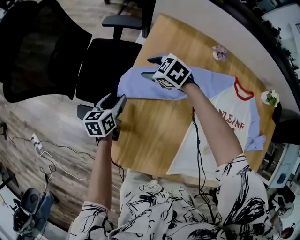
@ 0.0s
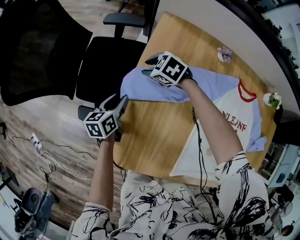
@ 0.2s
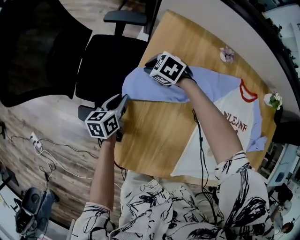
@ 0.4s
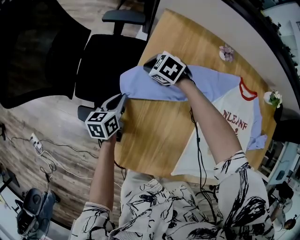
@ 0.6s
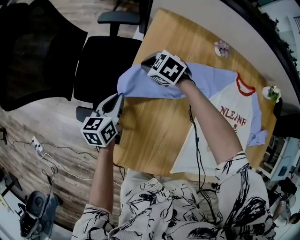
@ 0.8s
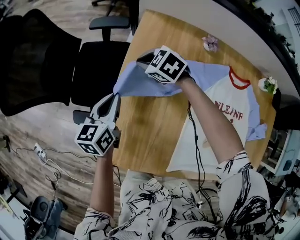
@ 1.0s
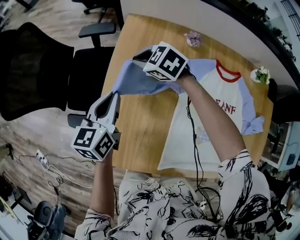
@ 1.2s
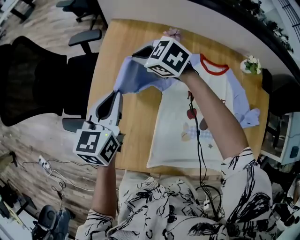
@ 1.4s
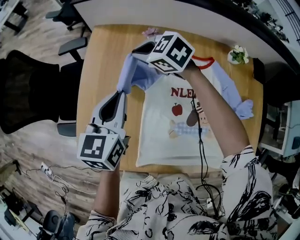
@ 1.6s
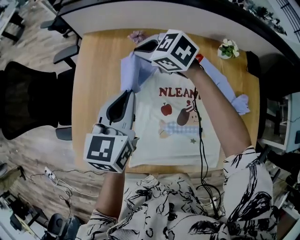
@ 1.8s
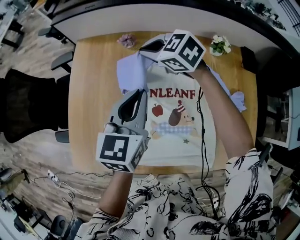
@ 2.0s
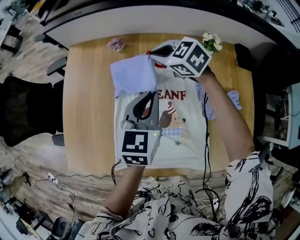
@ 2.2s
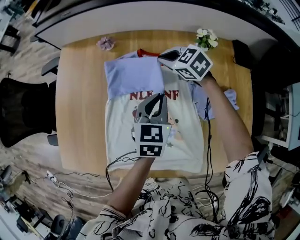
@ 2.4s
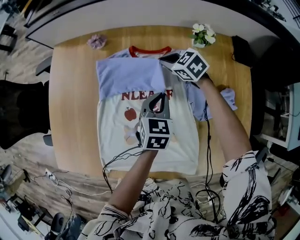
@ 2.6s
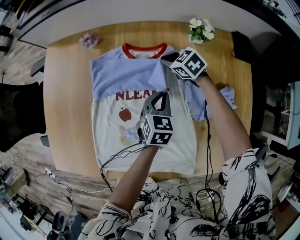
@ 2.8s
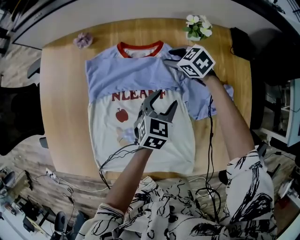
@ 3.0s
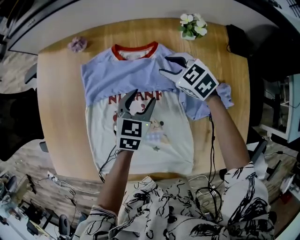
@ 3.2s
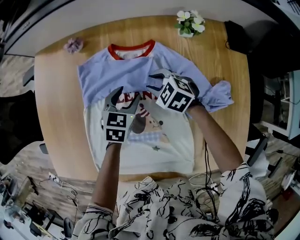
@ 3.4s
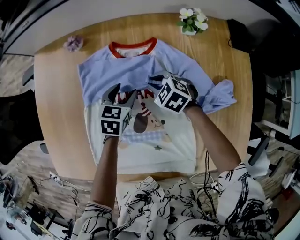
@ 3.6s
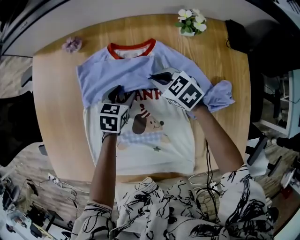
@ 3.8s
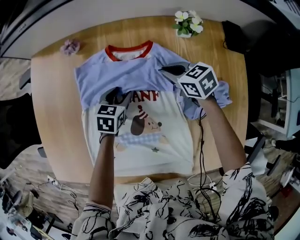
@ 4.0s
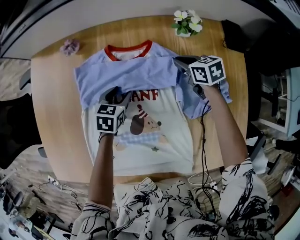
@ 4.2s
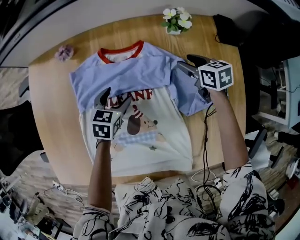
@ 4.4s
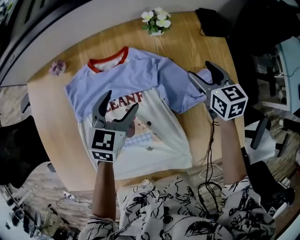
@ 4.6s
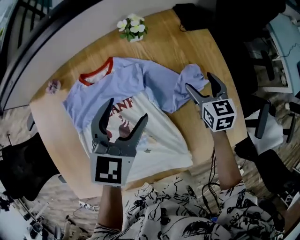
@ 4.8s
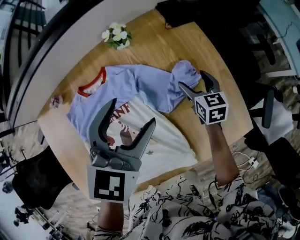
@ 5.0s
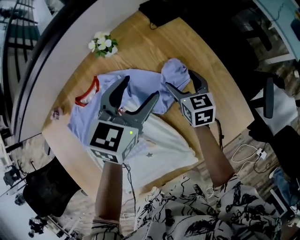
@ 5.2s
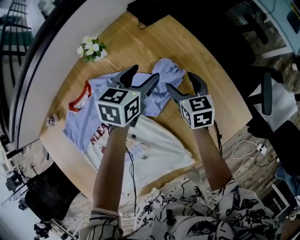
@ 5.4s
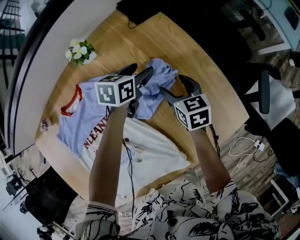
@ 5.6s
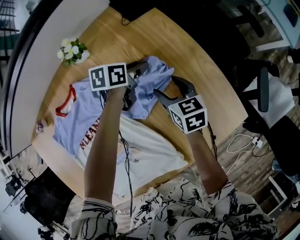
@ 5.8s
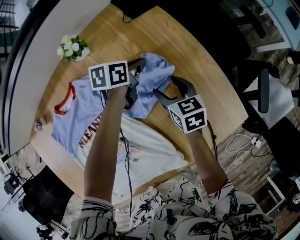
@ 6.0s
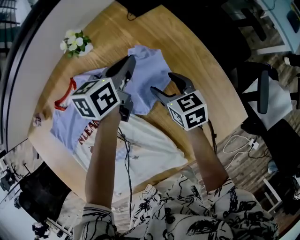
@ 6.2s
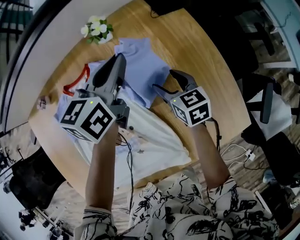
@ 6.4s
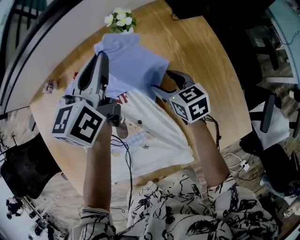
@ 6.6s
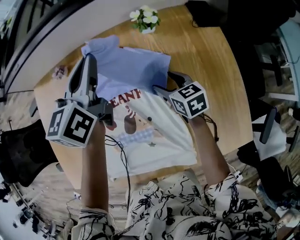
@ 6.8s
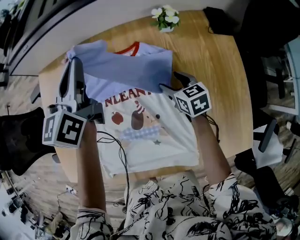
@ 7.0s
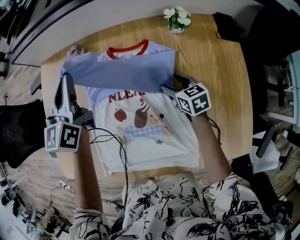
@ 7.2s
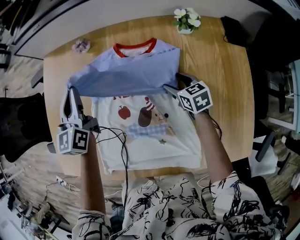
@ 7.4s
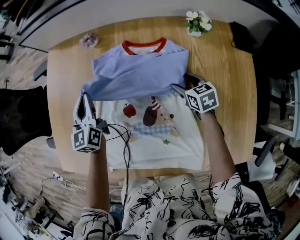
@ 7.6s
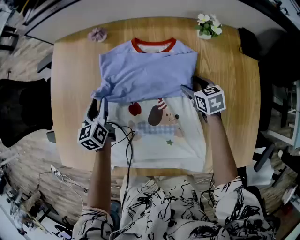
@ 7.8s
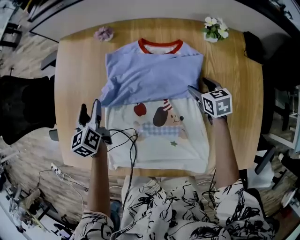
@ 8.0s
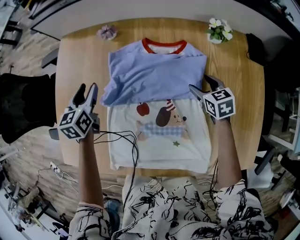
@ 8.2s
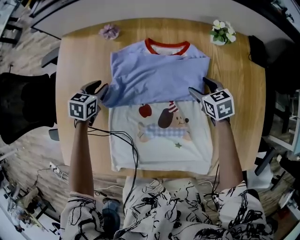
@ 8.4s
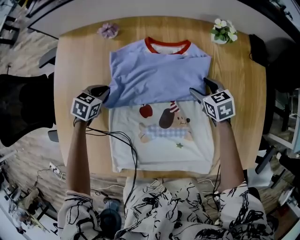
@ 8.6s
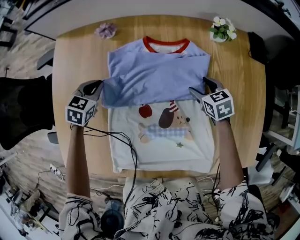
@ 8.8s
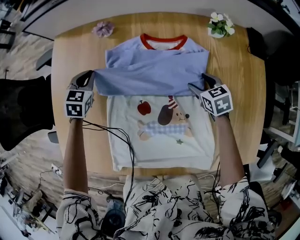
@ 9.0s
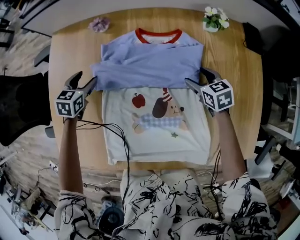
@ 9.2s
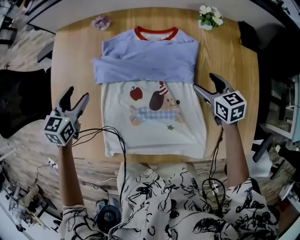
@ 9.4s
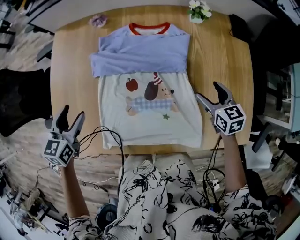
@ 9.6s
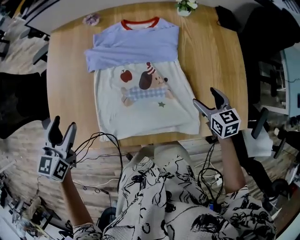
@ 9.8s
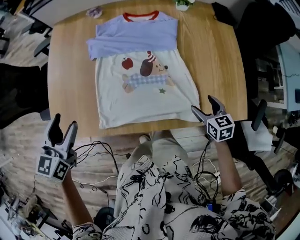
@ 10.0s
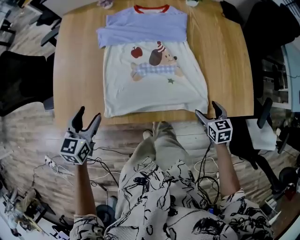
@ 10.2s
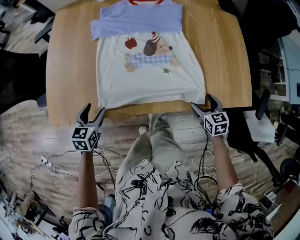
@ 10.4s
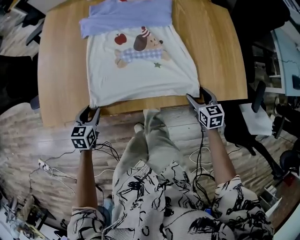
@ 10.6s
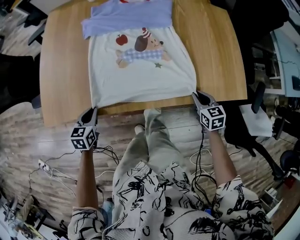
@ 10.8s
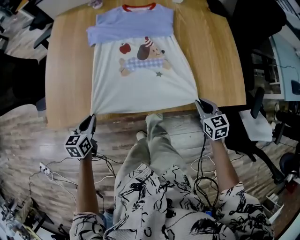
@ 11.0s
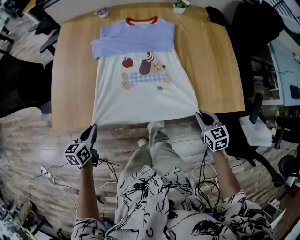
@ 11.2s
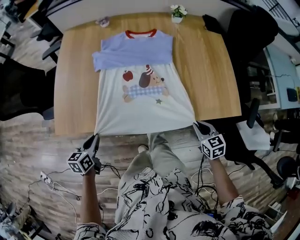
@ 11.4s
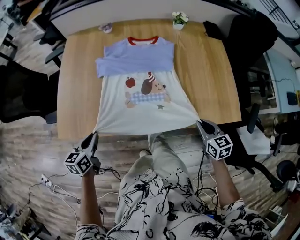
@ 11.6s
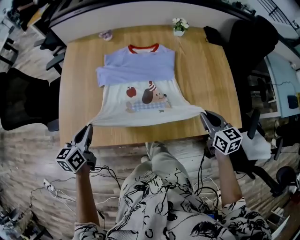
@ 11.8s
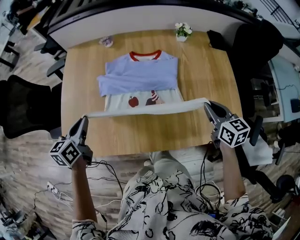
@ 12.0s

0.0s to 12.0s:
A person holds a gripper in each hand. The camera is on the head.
0.0s to 1.6s: The two grippers go about 35 cm to the right, upward and backward. The left gripper turns by approximately 30 degrees, and closes its fingers. Meanwhile the right gripper closes.
1.6s to 3.0s: The pair of grippers is taken to the right, some 40 cm. The two grippers go approximately 20 cm downward. The left gripper turns by about 30 degrees, and opens its fingers. The right gripper rotates roughly 20 degrees, and opens its fingers.
3.0s to 4.4s: The left gripper shifts approximately 15 cm to the left and forward, while the right gripper shifts about 15 cm to the right and backward, turns by some 40 degrees, and closes and opens again.
4.4s to 6.0s: The left gripper reaches approximately 25 cm upward, then returns, rotates some 40 degrees, and closes up. Meanwhile the right gripper travels upward and back again, about 10 cm each way, and changes its angle by roughly 30 degrees.
6.0s to 7.6s: The left gripper ends up some 60 cm from where it was, and rotates approximately 90 degrees. The right gripper moves some 25 cm, and swivels roughly 40 degrees.
7.6s to 9.0s: The left gripper swings up and down, roughly 15 cm each way, with 3 reversals, points its fingers roughly 30 degrees further downward, and opens, then closes once more.
9.0s to 10.4s: The two grippers travel together, backward, approximately 40 cm. The left gripper opens its fingers.
10.4s to 12.0s: Both grippers move upward and forward, approximately 25 cm. The right gripper closes its fingers. The left gripper swivels some 20 degrees, and closes.

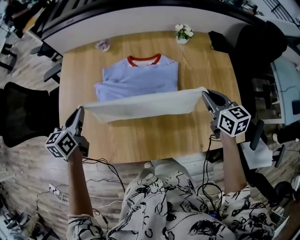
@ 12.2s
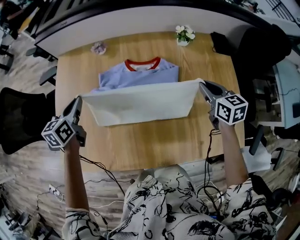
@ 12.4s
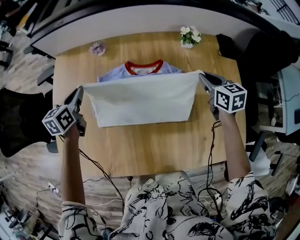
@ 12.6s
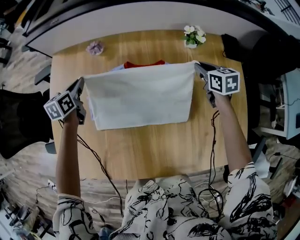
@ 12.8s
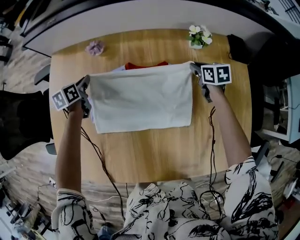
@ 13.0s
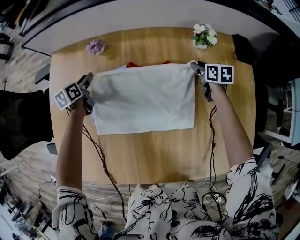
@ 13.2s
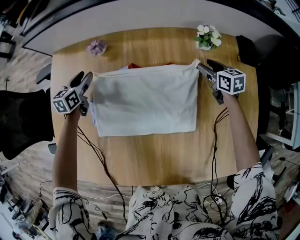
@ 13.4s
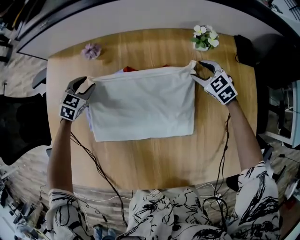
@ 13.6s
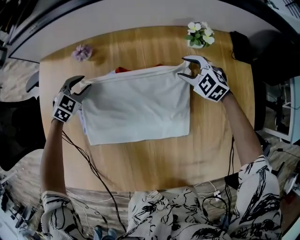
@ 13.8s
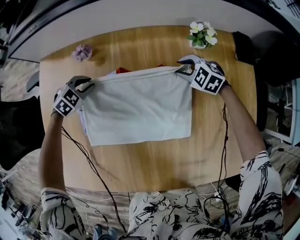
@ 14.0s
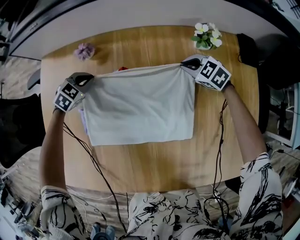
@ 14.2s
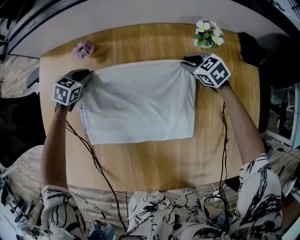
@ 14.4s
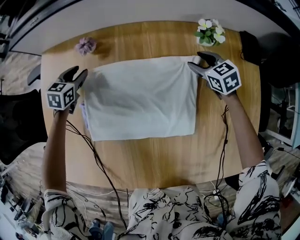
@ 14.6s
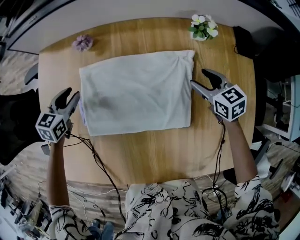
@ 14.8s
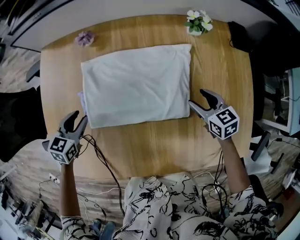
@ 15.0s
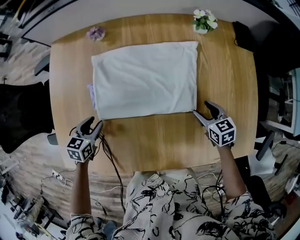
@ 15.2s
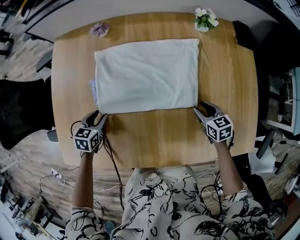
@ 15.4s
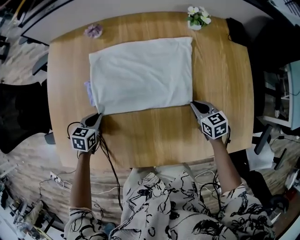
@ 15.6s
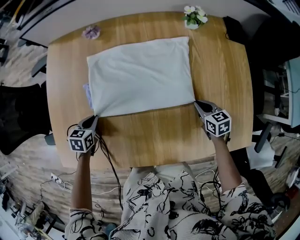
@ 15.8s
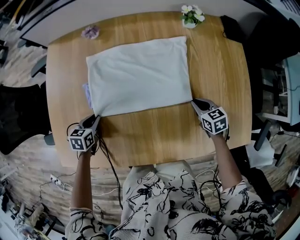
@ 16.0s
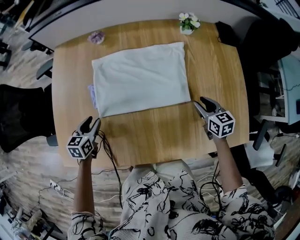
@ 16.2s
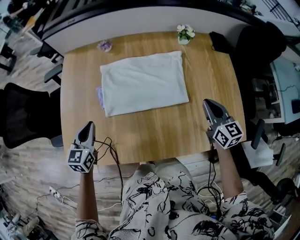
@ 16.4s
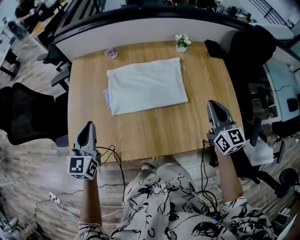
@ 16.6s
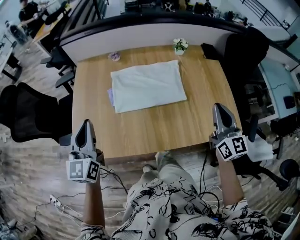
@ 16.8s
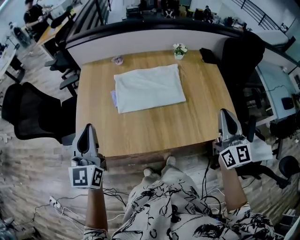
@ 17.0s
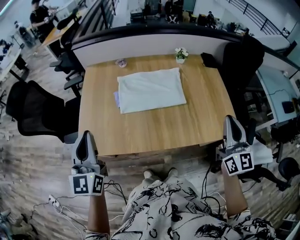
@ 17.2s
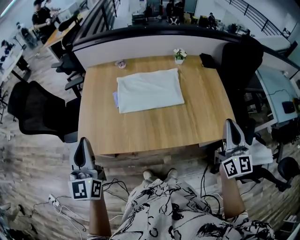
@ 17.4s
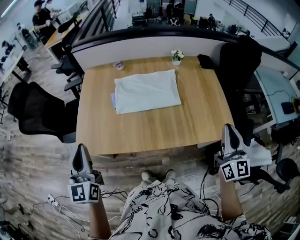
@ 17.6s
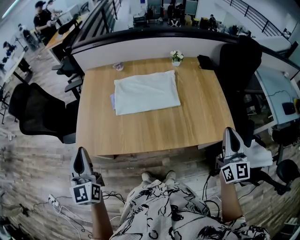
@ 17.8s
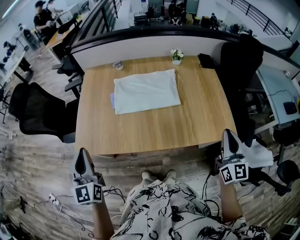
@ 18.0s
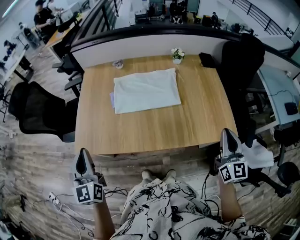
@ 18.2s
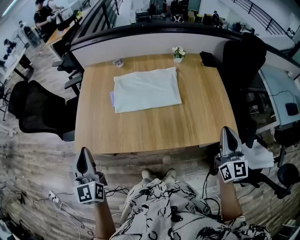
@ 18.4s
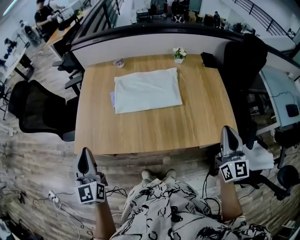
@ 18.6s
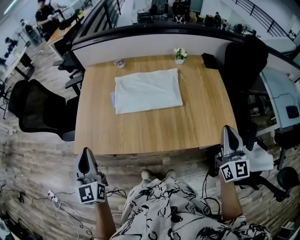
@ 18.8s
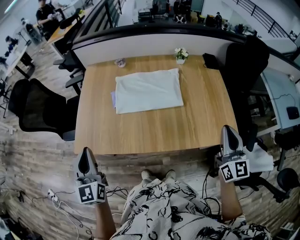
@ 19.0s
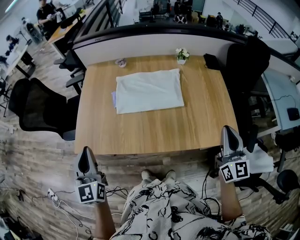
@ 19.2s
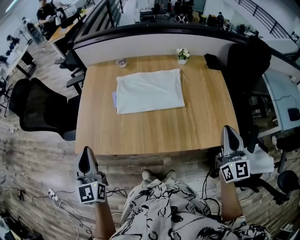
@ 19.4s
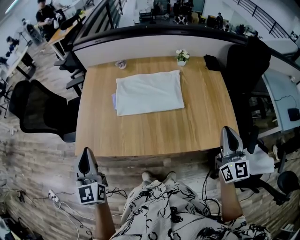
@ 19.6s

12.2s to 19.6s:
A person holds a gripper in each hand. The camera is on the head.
12.2s to 13.6s: The grippers both shift forward and downward by about 35 cm. The right gripper rotates approximately 40 degrees, and opens. The left gripper twists about 50 degrees clockwise, seen from behind.
13.6s to 15.2s: The two grippers go about 25 cm backward. The right gripper swivels some 30 degrees, and closes, then reopens. Meanwhile the left gripper changes its angle by about 30 degrees.
15.2s to 16.6s: Both grippers move upward and backward, some 30 cm. The left gripper points its fingers about 40 degrees further upward; the right gripper points its fingers some 40 degrees further upward, and closes up.
16.6s to 18.2s: The left gripper is displaced backward and upward by about 20 cm, and changes its angle by about 20 degrees. The right gripper shifts about 20 cm backward.
18.2s to 19.6s: The right gripper shifts by roughly 5 cm.

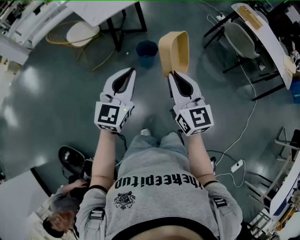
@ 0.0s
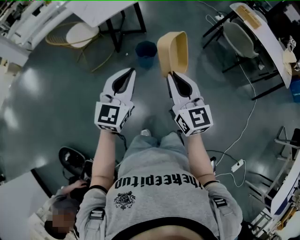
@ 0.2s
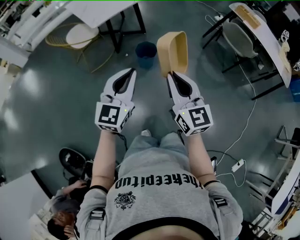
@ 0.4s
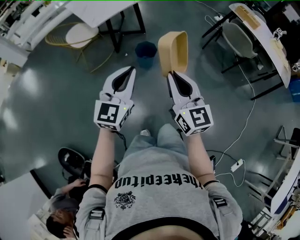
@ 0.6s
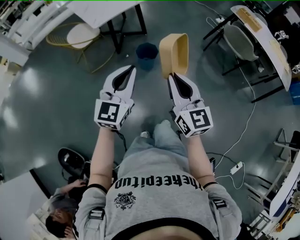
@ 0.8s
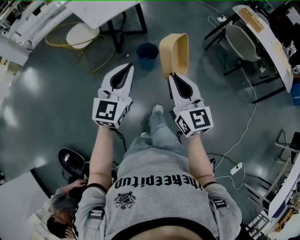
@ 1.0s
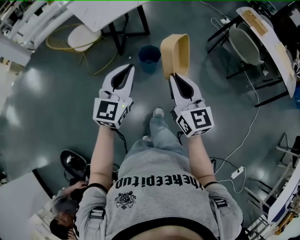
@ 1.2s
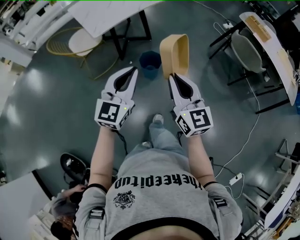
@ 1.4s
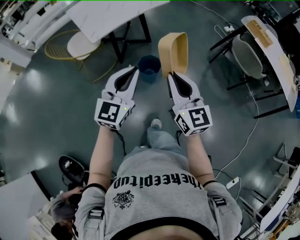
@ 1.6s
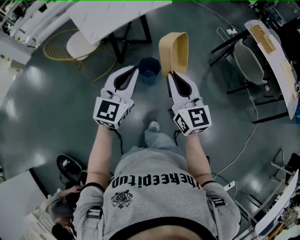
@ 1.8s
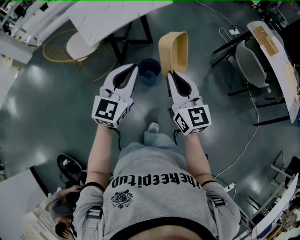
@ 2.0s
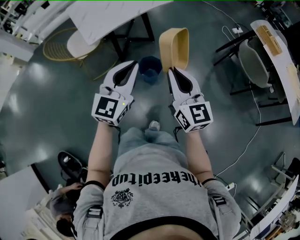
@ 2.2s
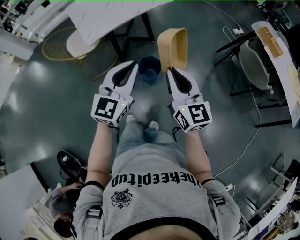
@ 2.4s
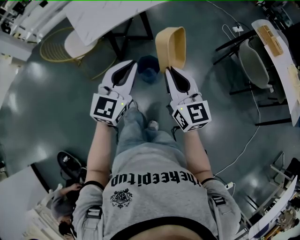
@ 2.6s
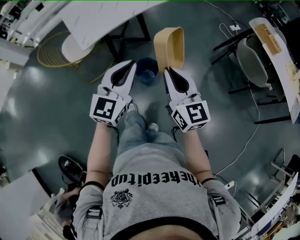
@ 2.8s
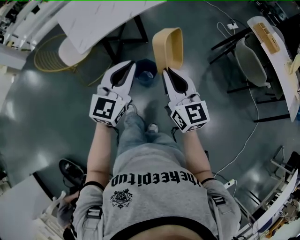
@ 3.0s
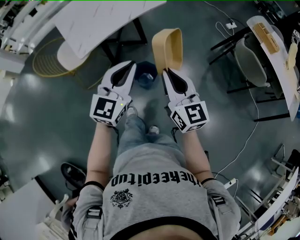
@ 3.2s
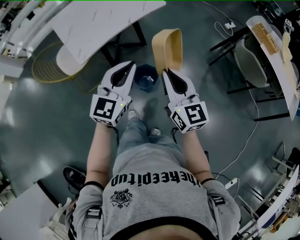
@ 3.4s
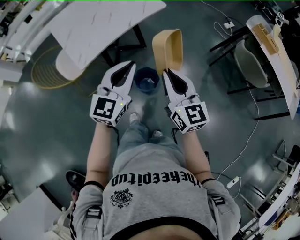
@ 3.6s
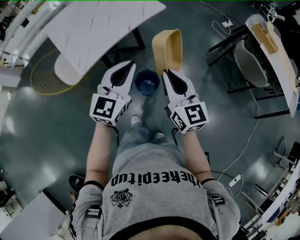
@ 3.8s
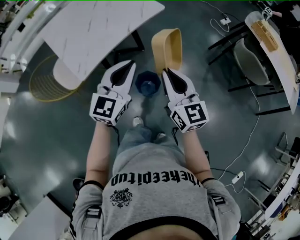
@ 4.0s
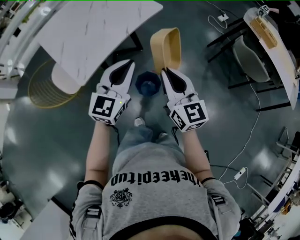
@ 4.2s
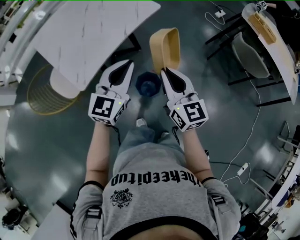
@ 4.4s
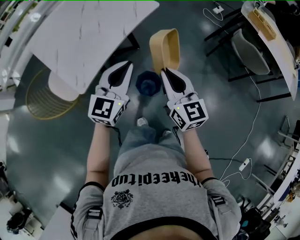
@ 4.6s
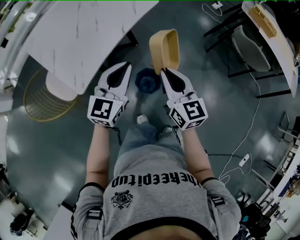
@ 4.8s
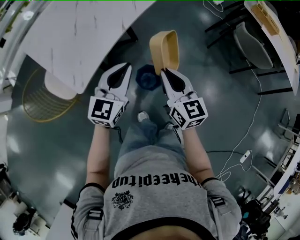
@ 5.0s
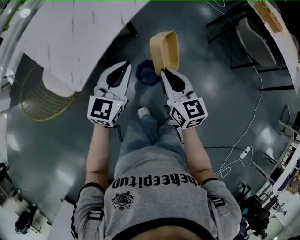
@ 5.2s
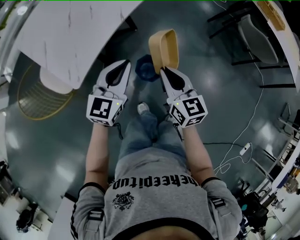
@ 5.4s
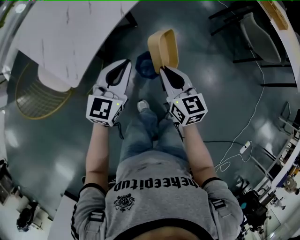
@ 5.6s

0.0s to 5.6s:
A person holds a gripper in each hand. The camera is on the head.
0.0s to 1.4s: Both grippers move forward, about 10 cm.
1.4s to 2.8s: The grippers both shift forward by some 15 cm.
2.8s to 4.2s: The right gripper moves forward and to the left, approximately 20 cm; the left gripper moves forward, some 20 cm.
4.2s to 5.6s: Both grippers move downward, approximately 15 cm.
